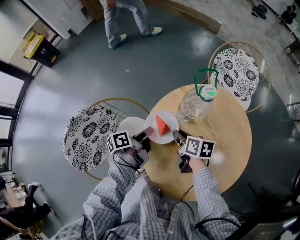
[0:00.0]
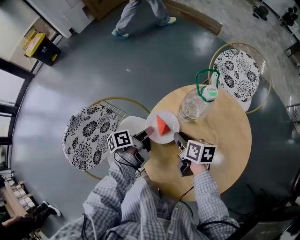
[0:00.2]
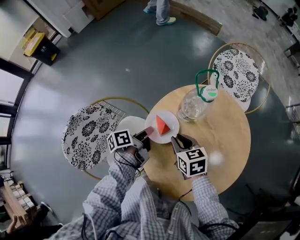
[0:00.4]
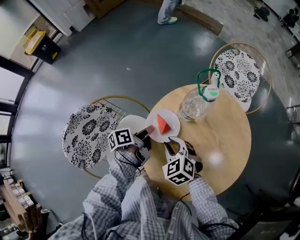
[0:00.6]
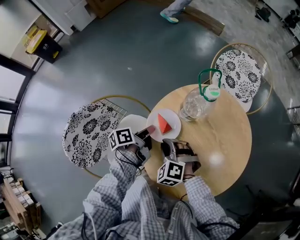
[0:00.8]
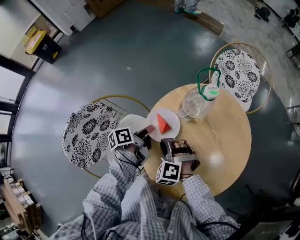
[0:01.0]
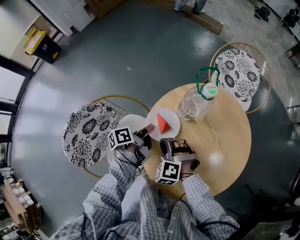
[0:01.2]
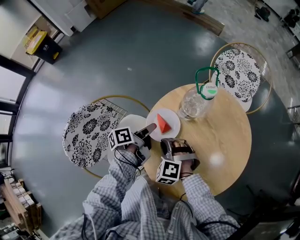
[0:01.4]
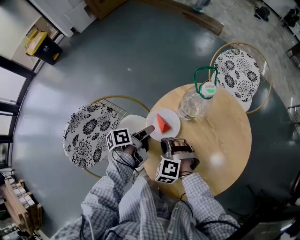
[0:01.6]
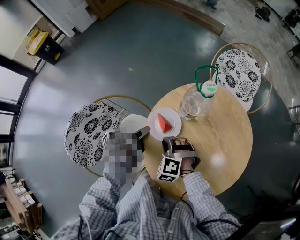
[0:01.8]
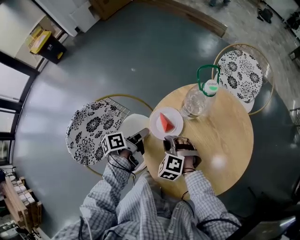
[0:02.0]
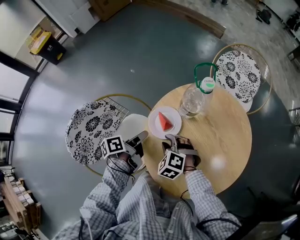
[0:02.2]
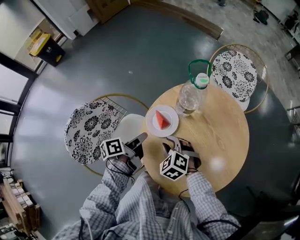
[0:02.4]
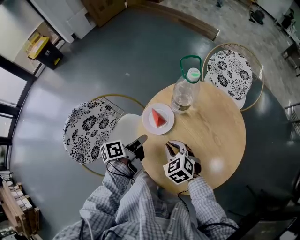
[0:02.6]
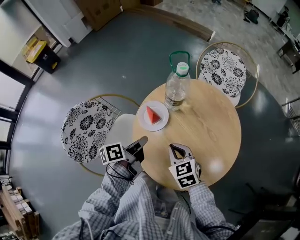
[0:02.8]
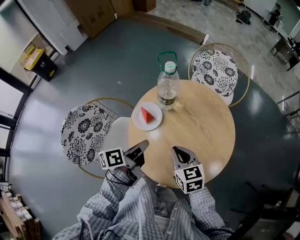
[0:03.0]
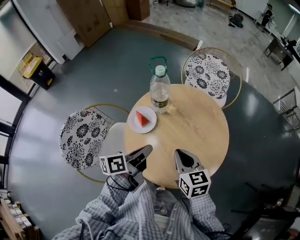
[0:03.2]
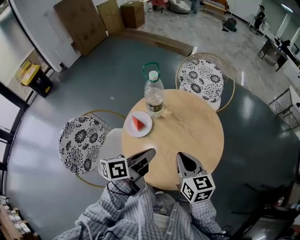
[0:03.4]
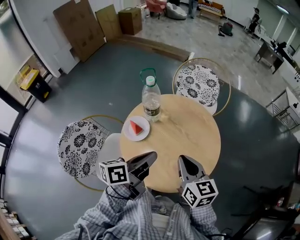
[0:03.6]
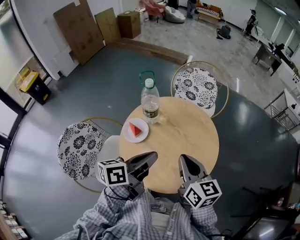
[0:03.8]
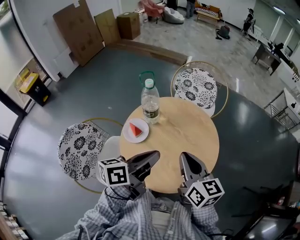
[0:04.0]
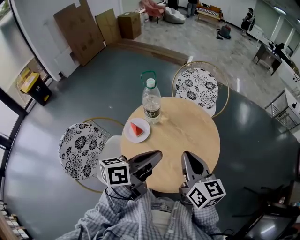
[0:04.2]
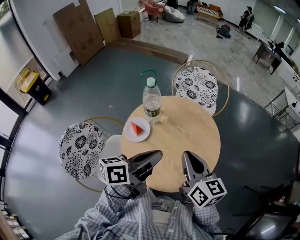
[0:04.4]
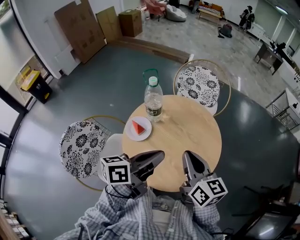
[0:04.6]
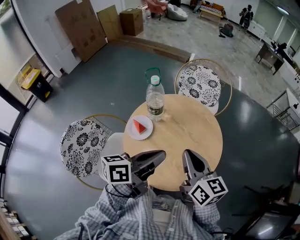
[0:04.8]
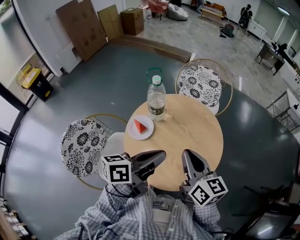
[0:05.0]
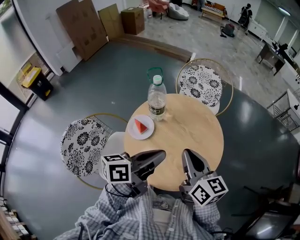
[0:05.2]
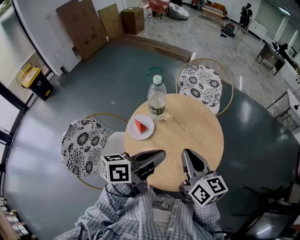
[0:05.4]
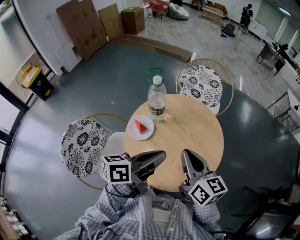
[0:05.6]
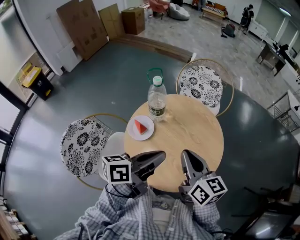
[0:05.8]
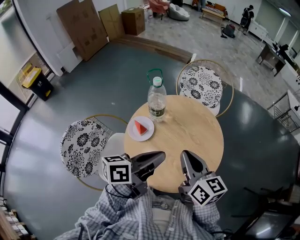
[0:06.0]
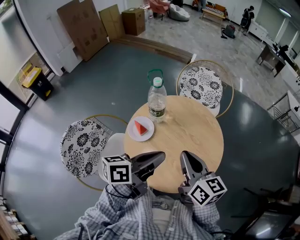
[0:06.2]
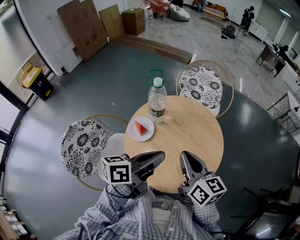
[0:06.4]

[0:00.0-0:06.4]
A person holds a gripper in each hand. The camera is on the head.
0:00.0 to 0:01.6: The right gripper changes place by approximately 10 cm, and rotates around the line of its fingers by some 100 degrees, counterclockwise from behind.
0:01.6 to 0:03.2: The right gripper shifts by some 20 cm, and twists some 70 degrees clockwise, seen from behind.
0:03.2 to 0:04.8: The right gripper heads upward, covering about 10 cm, and changes its angle by approximately 20 degrees.

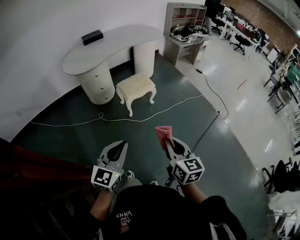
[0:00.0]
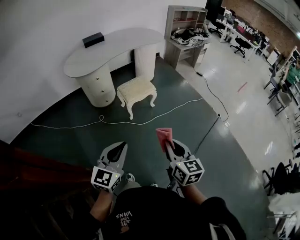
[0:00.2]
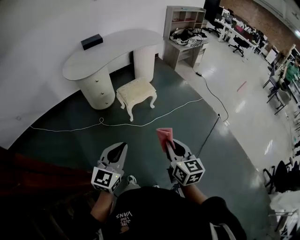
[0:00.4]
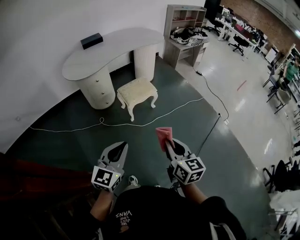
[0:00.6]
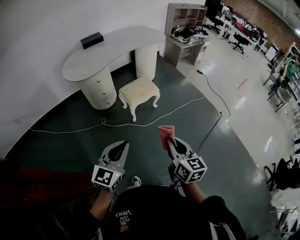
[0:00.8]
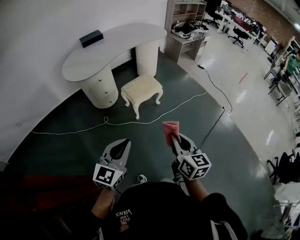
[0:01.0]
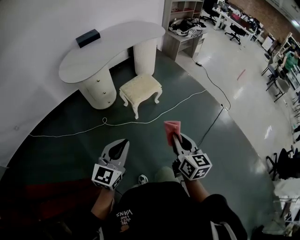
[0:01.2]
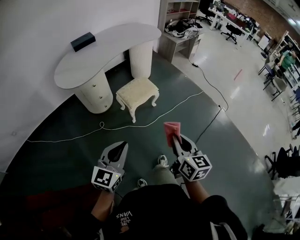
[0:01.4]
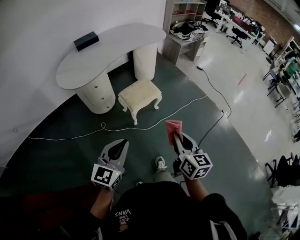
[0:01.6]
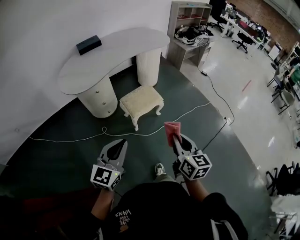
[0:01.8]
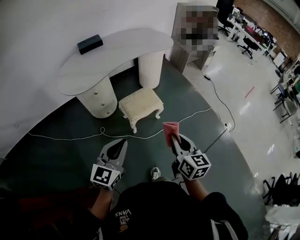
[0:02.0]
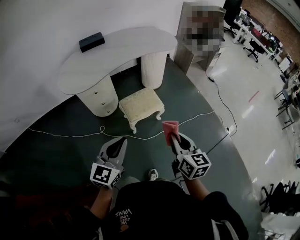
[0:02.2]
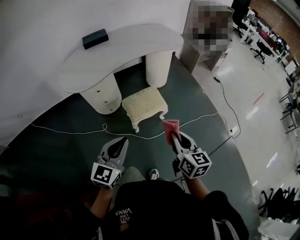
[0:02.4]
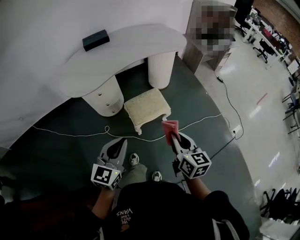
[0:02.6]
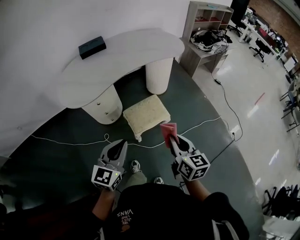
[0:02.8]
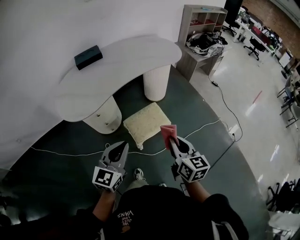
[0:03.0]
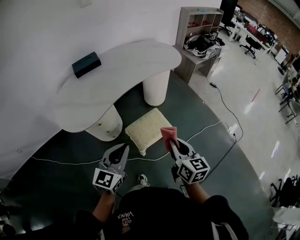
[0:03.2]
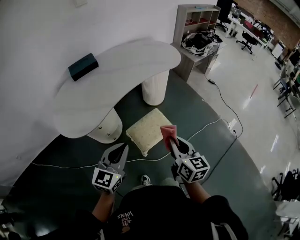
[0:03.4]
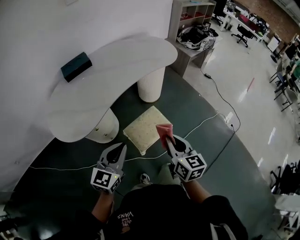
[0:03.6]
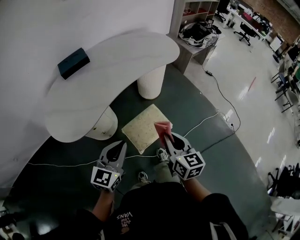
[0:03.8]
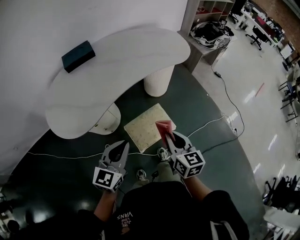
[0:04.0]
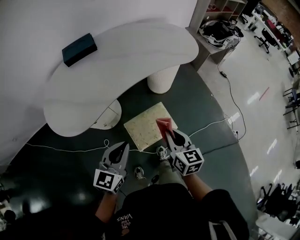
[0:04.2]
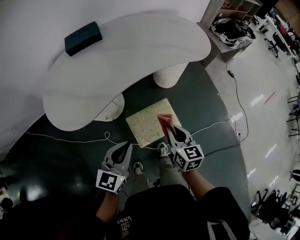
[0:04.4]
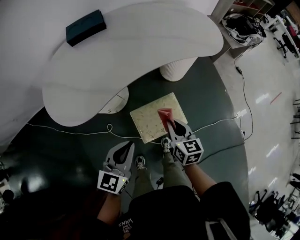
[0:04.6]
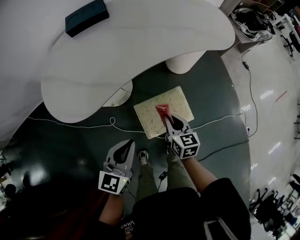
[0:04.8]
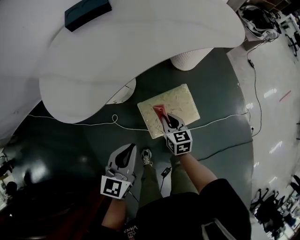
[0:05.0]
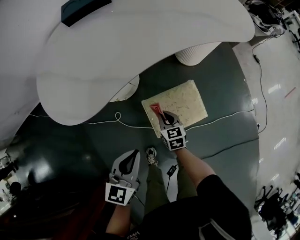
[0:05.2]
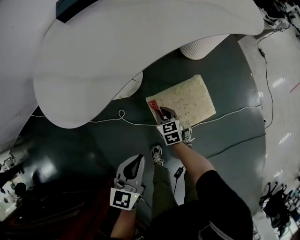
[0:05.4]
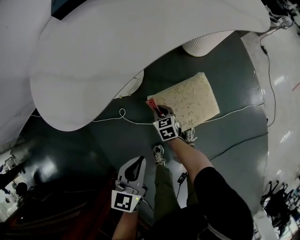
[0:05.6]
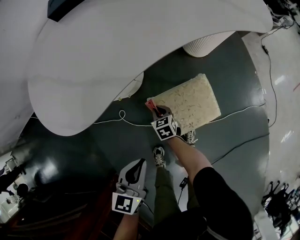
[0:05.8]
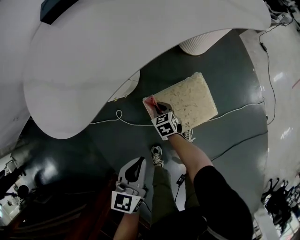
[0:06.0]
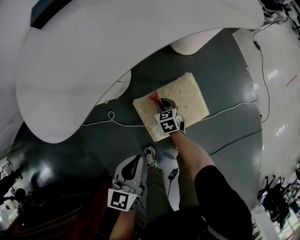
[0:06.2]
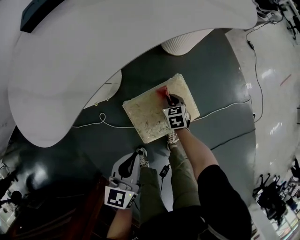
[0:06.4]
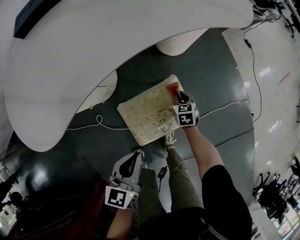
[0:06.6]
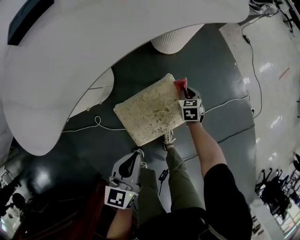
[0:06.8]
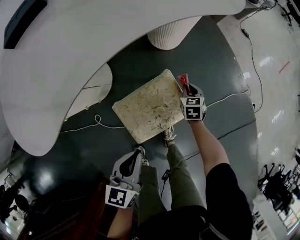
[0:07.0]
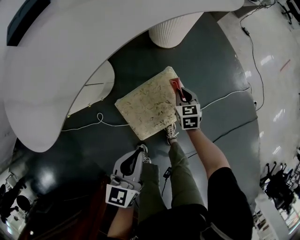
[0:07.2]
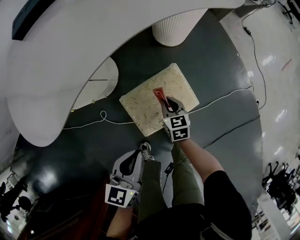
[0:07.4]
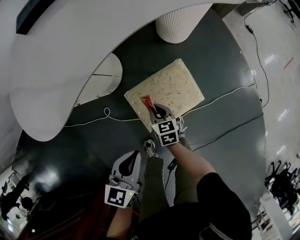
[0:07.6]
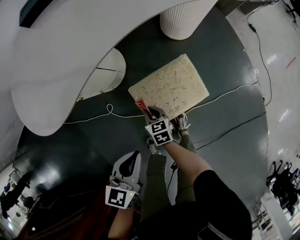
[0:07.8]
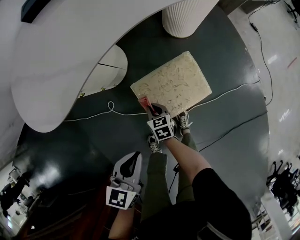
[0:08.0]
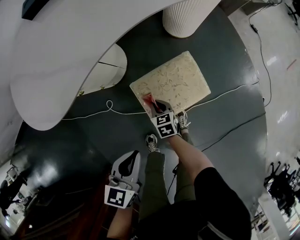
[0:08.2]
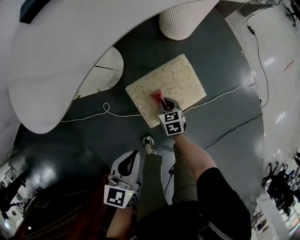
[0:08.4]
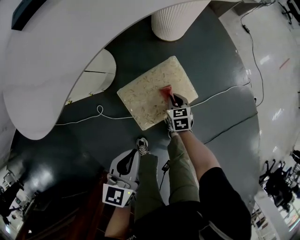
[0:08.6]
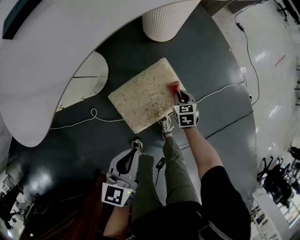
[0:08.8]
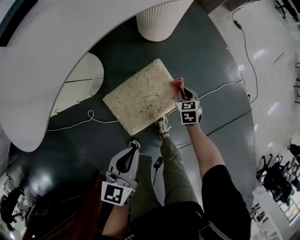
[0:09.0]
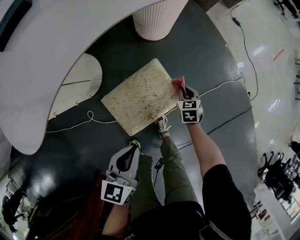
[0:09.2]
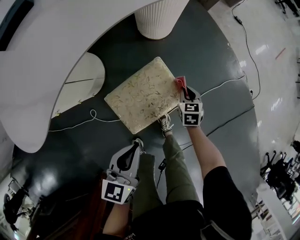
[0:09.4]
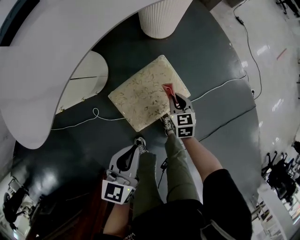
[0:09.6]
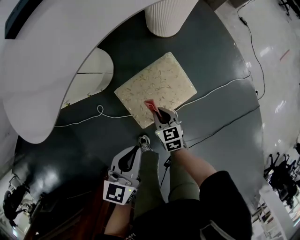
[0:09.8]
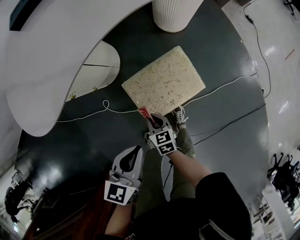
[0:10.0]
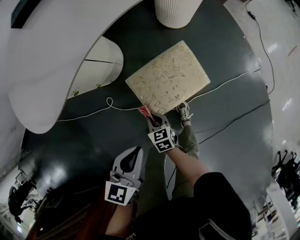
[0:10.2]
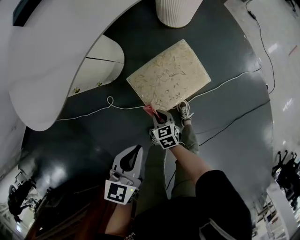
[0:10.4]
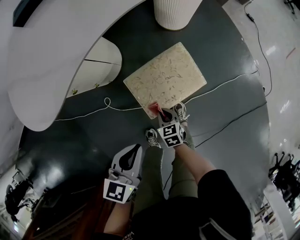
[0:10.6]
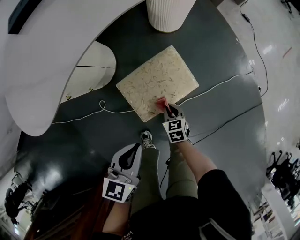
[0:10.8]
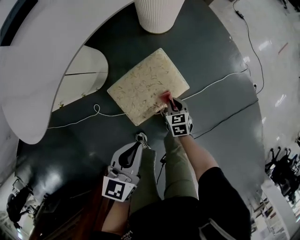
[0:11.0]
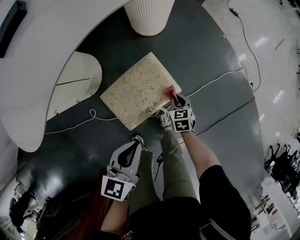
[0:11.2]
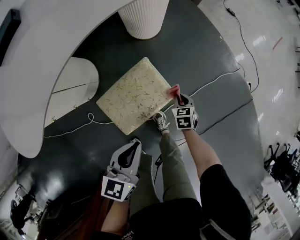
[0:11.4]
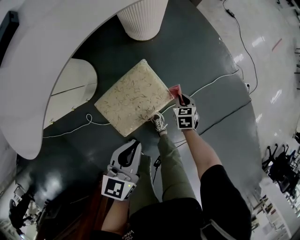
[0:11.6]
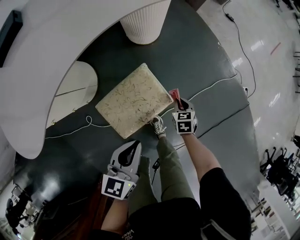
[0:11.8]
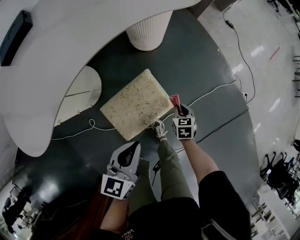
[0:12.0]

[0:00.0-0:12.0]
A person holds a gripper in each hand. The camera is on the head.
0:00.0 to 0:01.6: The right gripper heads forward, covering about 15 cm; the left gripper travels forward and to the left by roughly 20 cm.
0:01.6 to 0:03.0: Both grippers move forward, some 30 cm.
0:03.0 to 0:04.4: The grippers both shift forward and downward by about 20 cm.
0:04.4 to 0:06.0: The right gripper is displaced downward and to the left by some 40 cm, and turns by about 30 degrees. The left gripper heads downward, covering approximately 20 cm.
0:07.6 to 0:09.0: The left gripper is displaced to the right by about 10 cm; the right gripper goes some 25 cm to the right, and changes its angle by some 30 degrees.
0:09.0 to 0:10.4: The left gripper heads backward and to the left, covering roughly 10 cm; the right gripper heads to the left and backward, covering approximately 35 cm, and turns by some 20 degrees.
0:10.4 to 0:12.0: The right gripper goes approximately 35 cm to the right and forward, and swivels approximately 30 degrees; the left gripper goes about 20 cm forward and to the right.

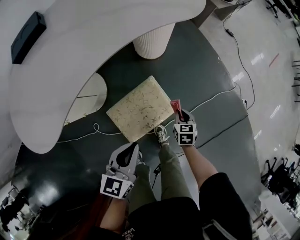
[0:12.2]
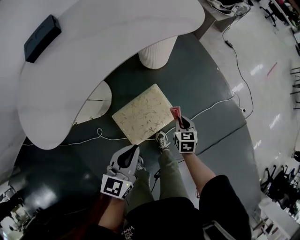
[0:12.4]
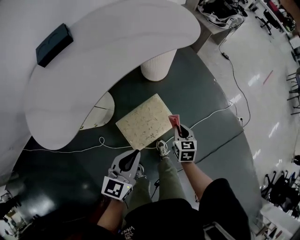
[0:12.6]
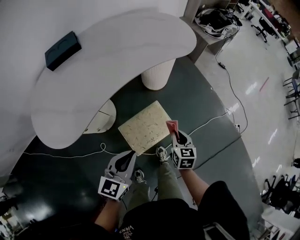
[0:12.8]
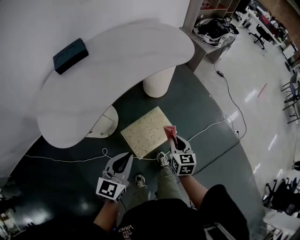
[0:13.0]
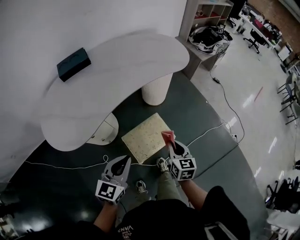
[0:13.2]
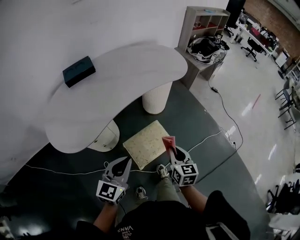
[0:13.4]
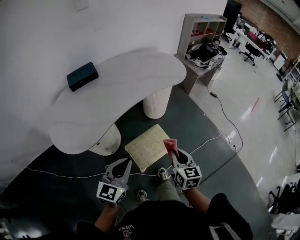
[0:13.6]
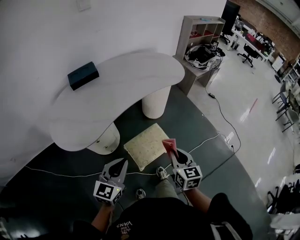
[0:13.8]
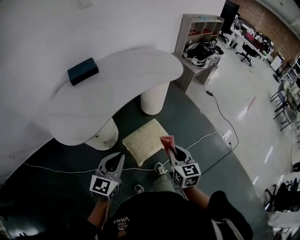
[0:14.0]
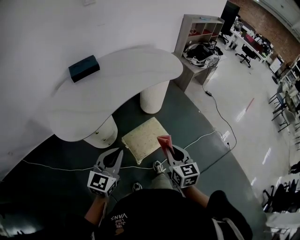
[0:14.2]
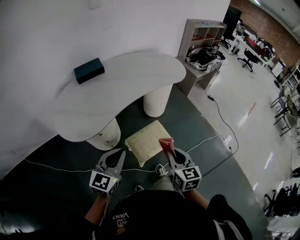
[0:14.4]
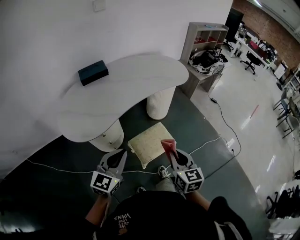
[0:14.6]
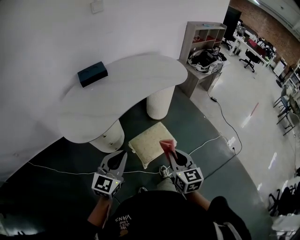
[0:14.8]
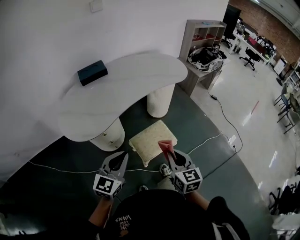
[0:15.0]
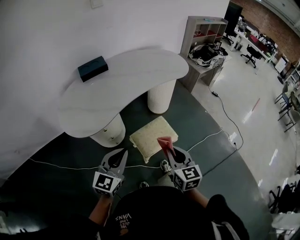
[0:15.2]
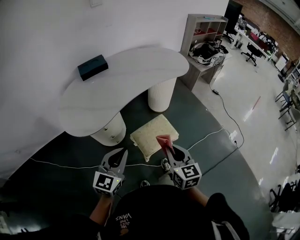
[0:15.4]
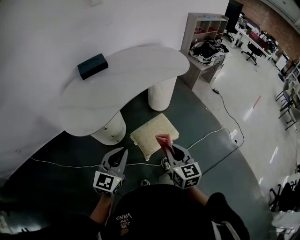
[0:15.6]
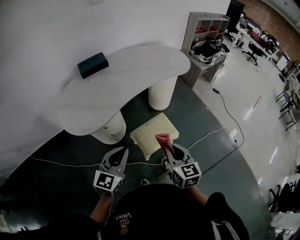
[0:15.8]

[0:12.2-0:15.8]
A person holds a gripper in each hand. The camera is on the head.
0:12.2 to 0:14.0: The left gripper is displaced upward, backward and to the left by roughly 30 cm, and swivels about 20 degrees. The right gripper goes roughly 40 cm upward and backward, and tips its fingers upward by roughly 30 degrees.
0:14.0 to 0:15.8: The right gripper travels to the left and backward by roughly 10 cm.

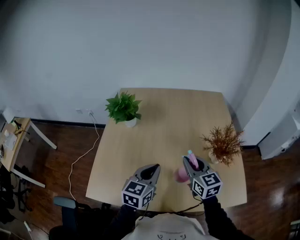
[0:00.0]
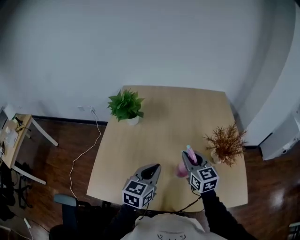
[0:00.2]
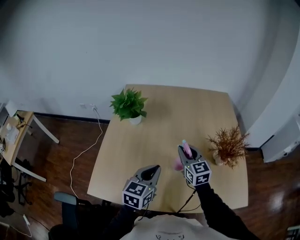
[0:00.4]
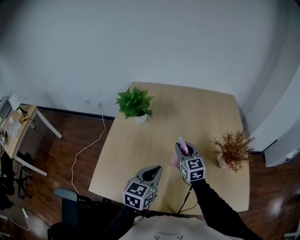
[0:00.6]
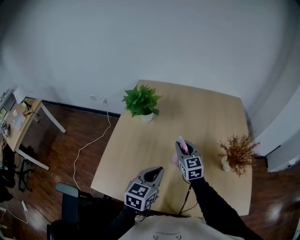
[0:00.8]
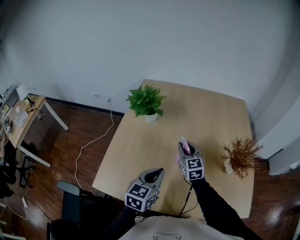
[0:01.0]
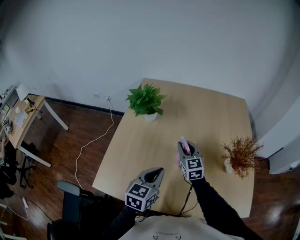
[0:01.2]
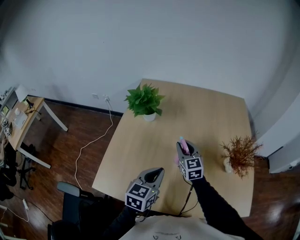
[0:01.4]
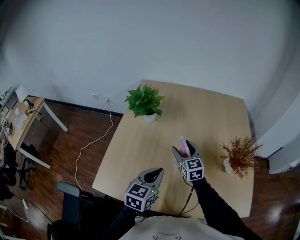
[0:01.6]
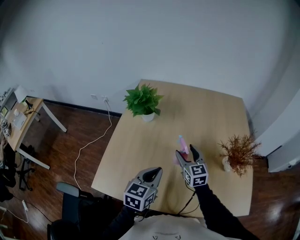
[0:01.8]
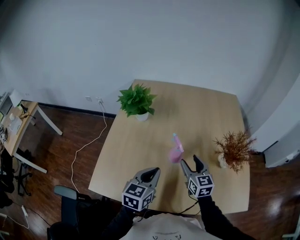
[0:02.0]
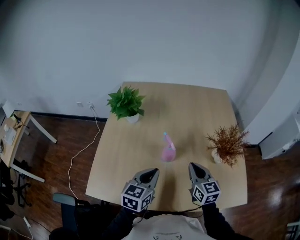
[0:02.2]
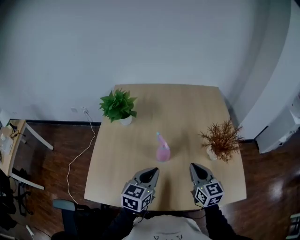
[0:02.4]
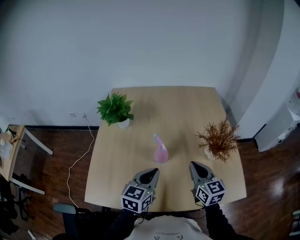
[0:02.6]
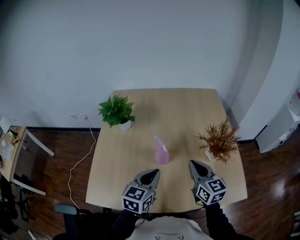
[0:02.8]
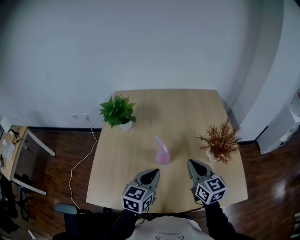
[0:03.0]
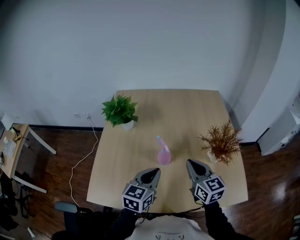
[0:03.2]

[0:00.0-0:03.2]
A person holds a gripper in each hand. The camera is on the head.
0:00.0 to 0:01.6: The right gripper heads forward, to the left and downward, covering about 20 cm, and opens. The left gripper shifts approximately 5 cm to the left.
0:01.6 to 0:03.2: The left gripper moves to the right, some 5 cm, while the right gripper travels to the right, backward and upward by approximately 20 cm, and closes.
